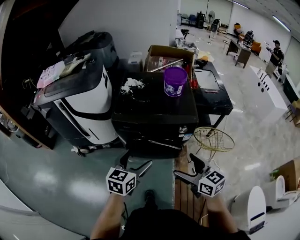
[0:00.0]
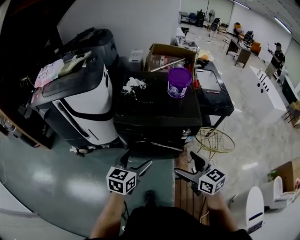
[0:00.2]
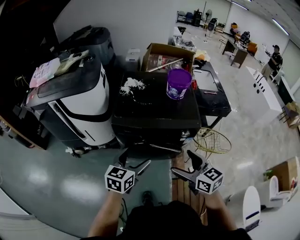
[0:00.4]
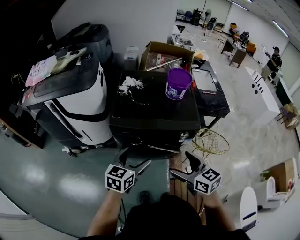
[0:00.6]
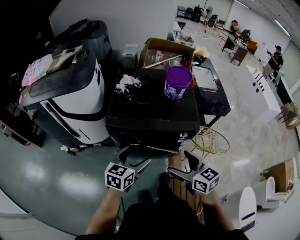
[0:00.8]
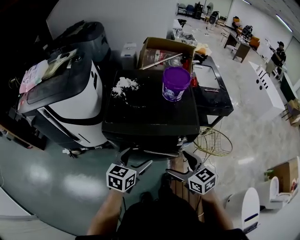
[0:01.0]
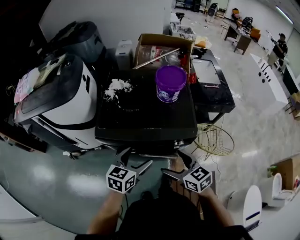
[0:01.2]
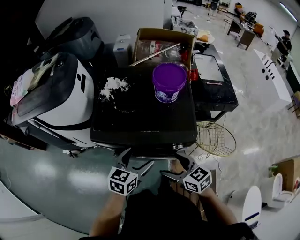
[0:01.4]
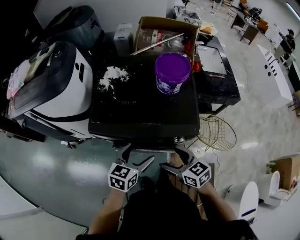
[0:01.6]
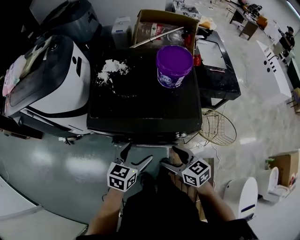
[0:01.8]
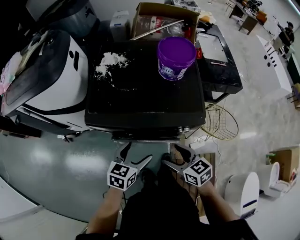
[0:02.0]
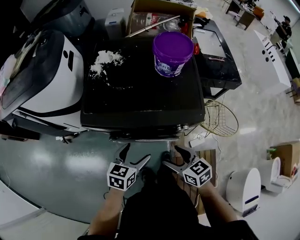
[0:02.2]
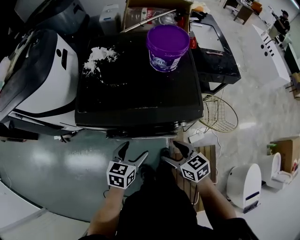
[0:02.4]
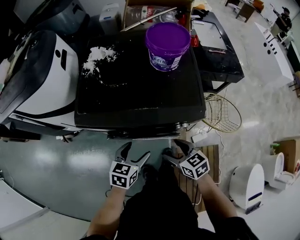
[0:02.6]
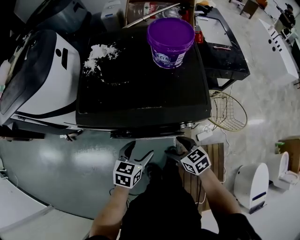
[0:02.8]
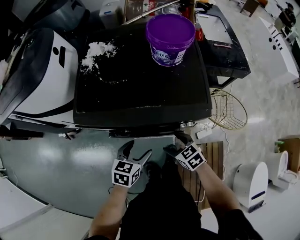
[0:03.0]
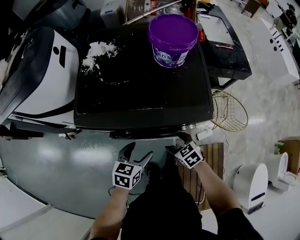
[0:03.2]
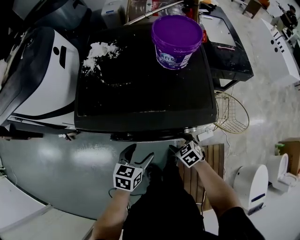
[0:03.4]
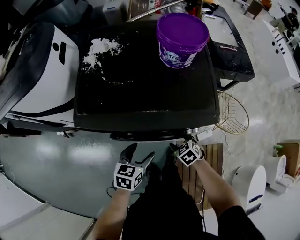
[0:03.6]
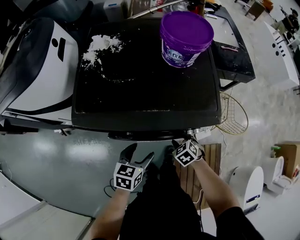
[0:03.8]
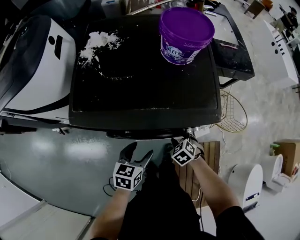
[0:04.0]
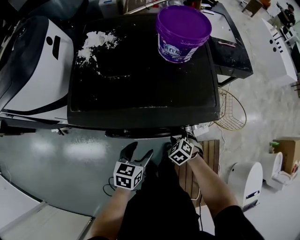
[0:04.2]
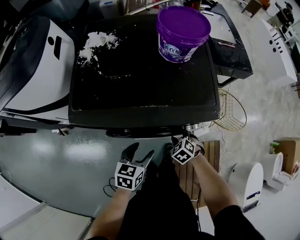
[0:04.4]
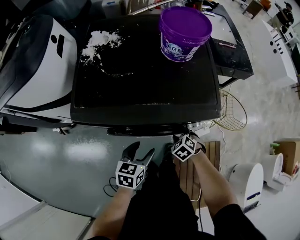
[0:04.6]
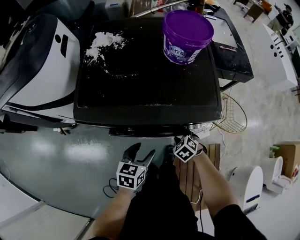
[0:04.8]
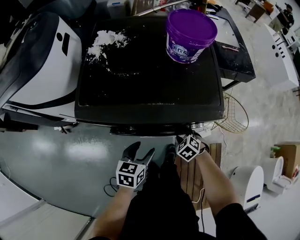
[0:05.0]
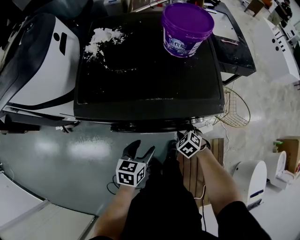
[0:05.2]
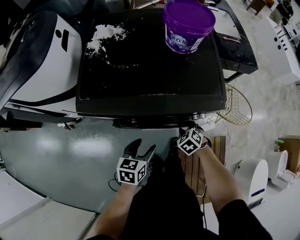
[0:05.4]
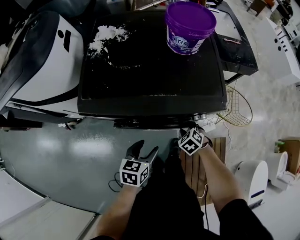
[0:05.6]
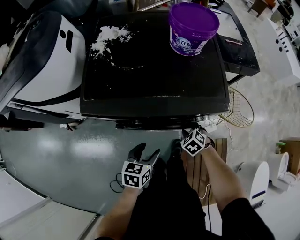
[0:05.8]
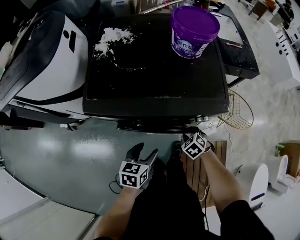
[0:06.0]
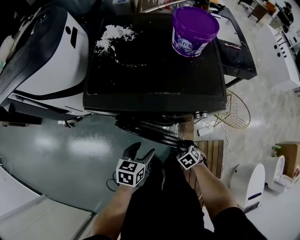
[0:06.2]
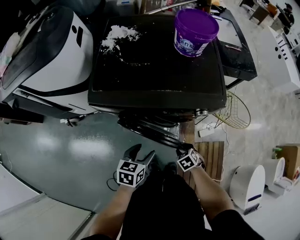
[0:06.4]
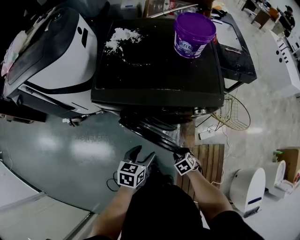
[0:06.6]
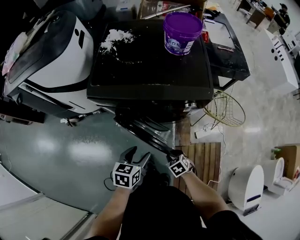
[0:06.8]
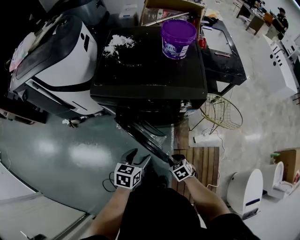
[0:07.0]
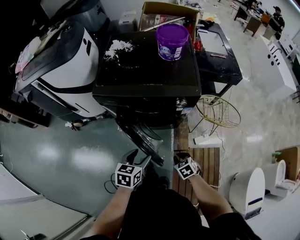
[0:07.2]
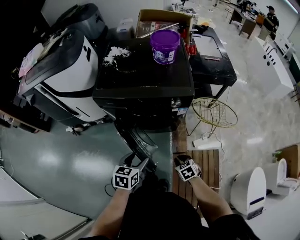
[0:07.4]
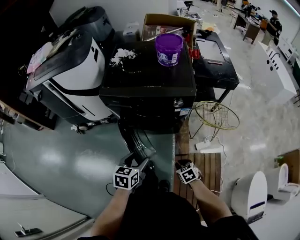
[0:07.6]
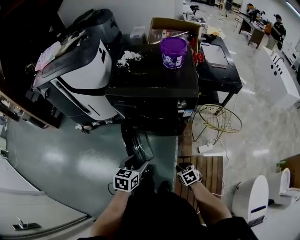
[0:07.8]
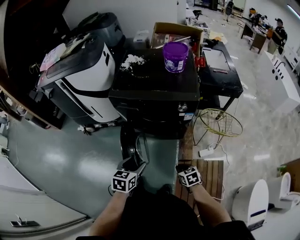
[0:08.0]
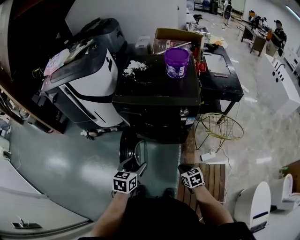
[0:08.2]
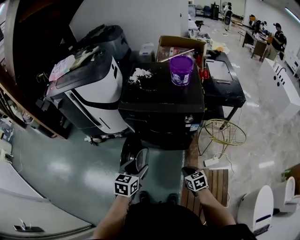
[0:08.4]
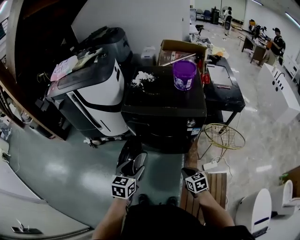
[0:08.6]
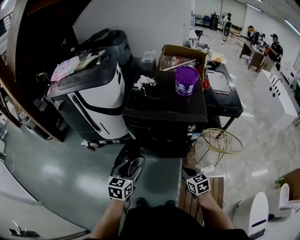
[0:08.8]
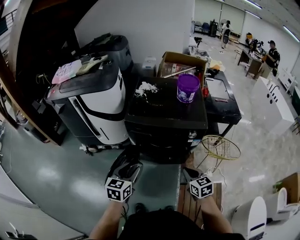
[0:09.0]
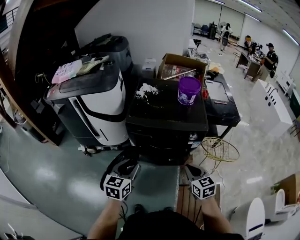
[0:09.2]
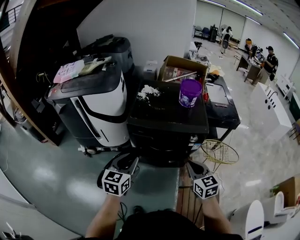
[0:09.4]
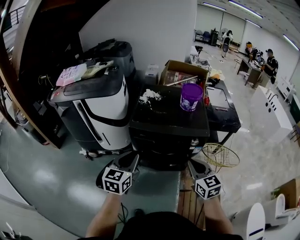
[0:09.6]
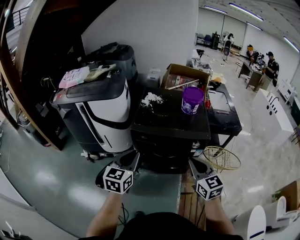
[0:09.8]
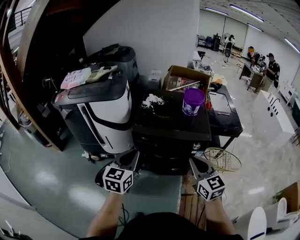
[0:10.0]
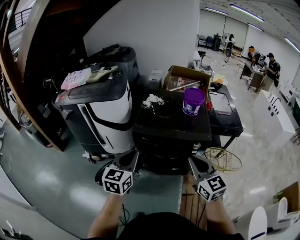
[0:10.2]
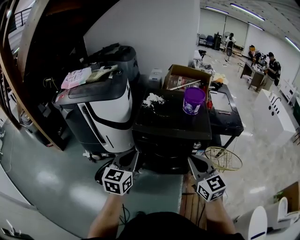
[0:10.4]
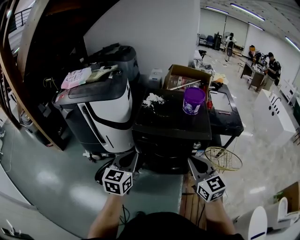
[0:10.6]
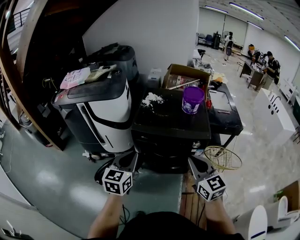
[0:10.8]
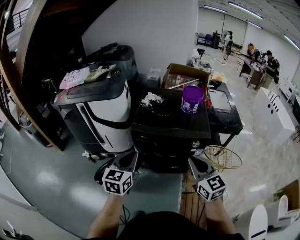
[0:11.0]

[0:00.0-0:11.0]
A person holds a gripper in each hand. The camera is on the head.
0.0 to 1.6 s: The right gripper is displaced forward and downward by some 20 cm; the left gripper heads forward, downward and to the right, covering about 20 cm.
1.6 to 3.2 s: The left gripper shifts some 15 cm downward; the right gripper travels downward by roughly 25 cm, and swivels approximately 30 degrees.
3.2 to 4.8 s: The right gripper is displaced downward by some 5 cm, rotates roughly 30 degrees, and closes up.
4.8 to 6.2 s: The right gripper shifts by roughly 10 cm, while the left gripper shifts by some 5 cm.
6.2 to 7.8 s: The right gripper ends up roughly 20 cm from where it was; the left gripper moves approximately 20 cm.
7.8 to 9.4 s: The right gripper goes roughly 30 cm upward, and tilts its fingers roughly 40 degrees upward; the left gripper moves upward, to the left and forward, some 25 cm, and turns by about 20 degrees.
9.4 to 11.0 s: The left gripper goes about 5 cm upward. Meanwhile the right gripper travels upward by roughly 10 cm.

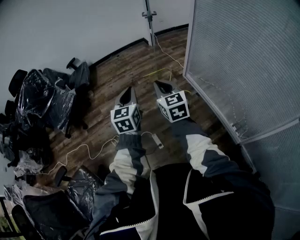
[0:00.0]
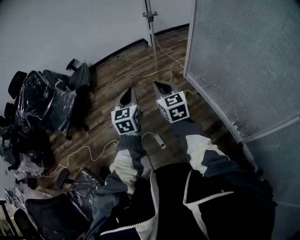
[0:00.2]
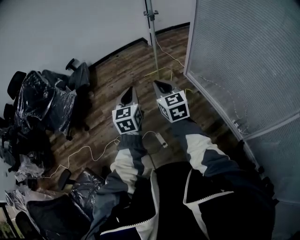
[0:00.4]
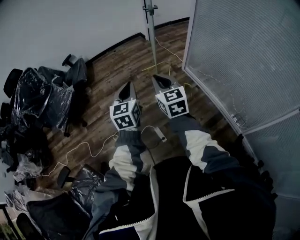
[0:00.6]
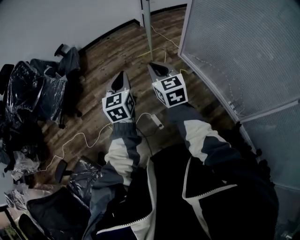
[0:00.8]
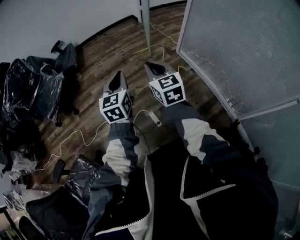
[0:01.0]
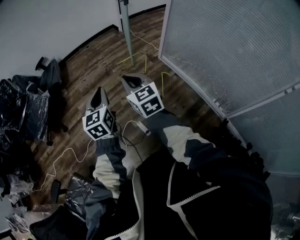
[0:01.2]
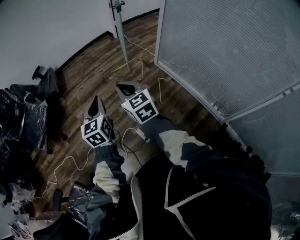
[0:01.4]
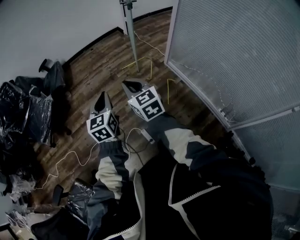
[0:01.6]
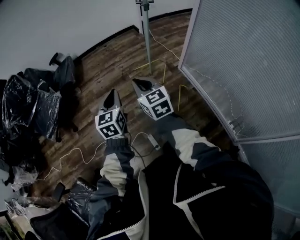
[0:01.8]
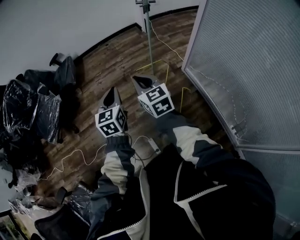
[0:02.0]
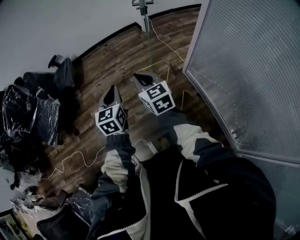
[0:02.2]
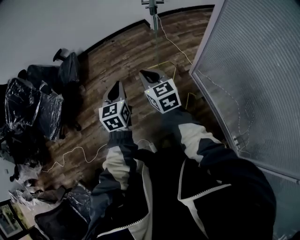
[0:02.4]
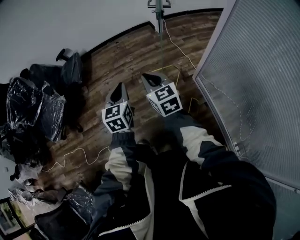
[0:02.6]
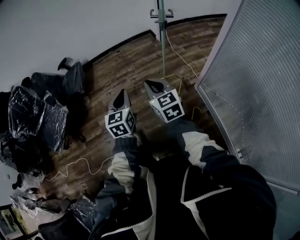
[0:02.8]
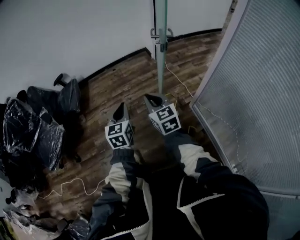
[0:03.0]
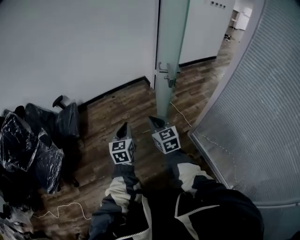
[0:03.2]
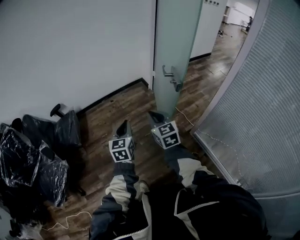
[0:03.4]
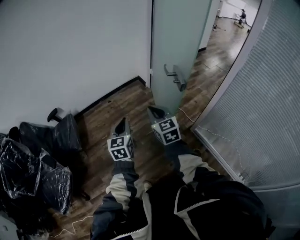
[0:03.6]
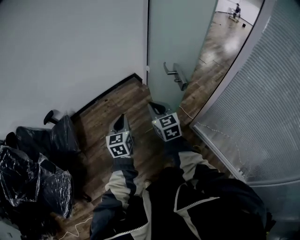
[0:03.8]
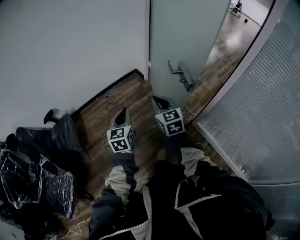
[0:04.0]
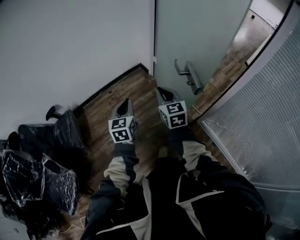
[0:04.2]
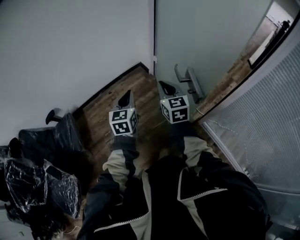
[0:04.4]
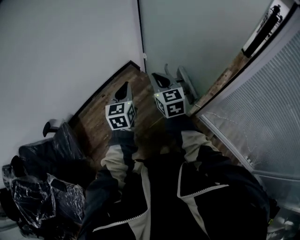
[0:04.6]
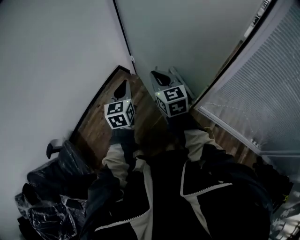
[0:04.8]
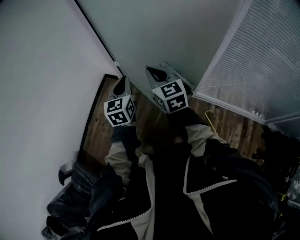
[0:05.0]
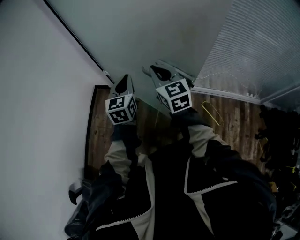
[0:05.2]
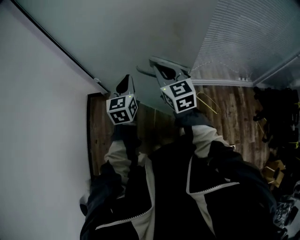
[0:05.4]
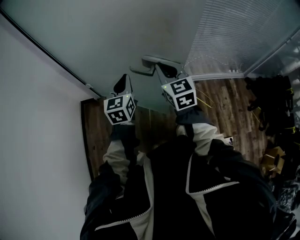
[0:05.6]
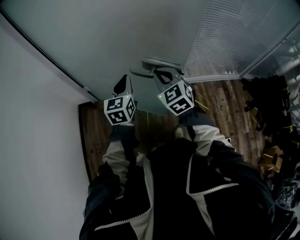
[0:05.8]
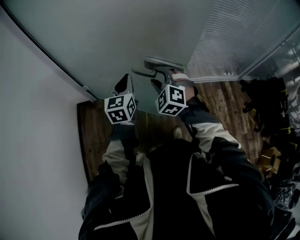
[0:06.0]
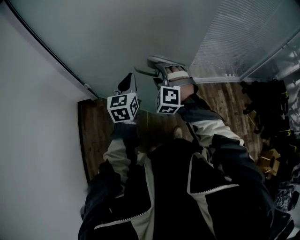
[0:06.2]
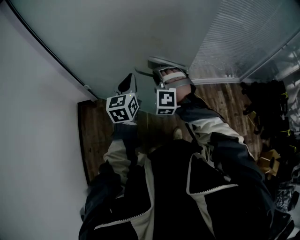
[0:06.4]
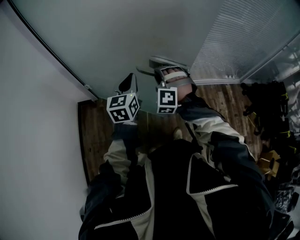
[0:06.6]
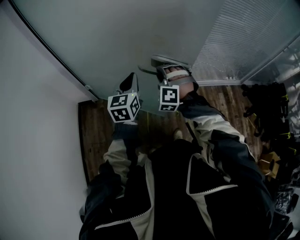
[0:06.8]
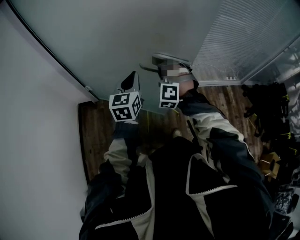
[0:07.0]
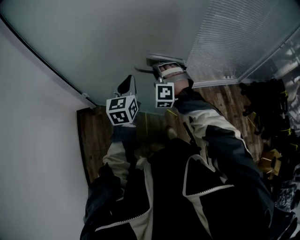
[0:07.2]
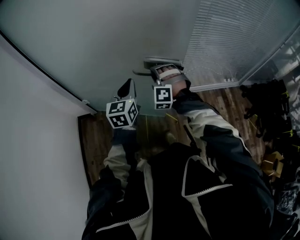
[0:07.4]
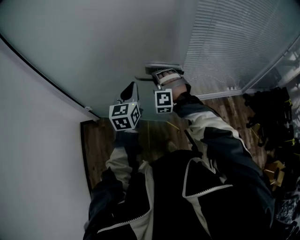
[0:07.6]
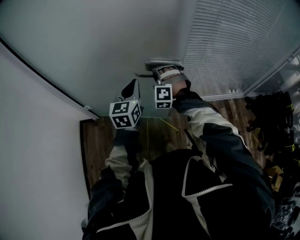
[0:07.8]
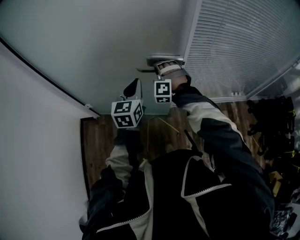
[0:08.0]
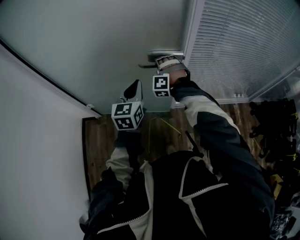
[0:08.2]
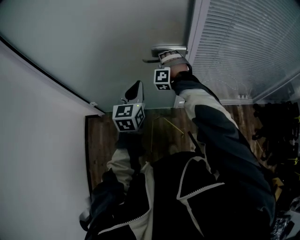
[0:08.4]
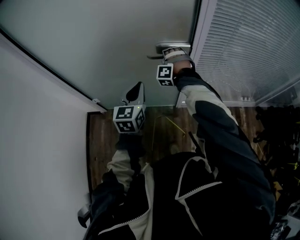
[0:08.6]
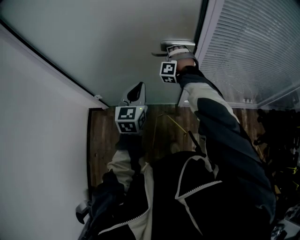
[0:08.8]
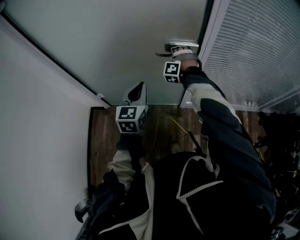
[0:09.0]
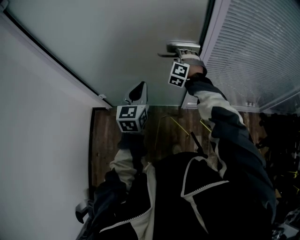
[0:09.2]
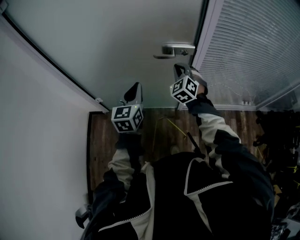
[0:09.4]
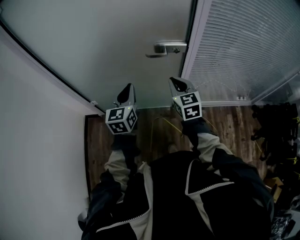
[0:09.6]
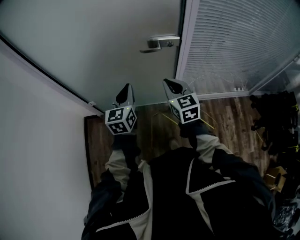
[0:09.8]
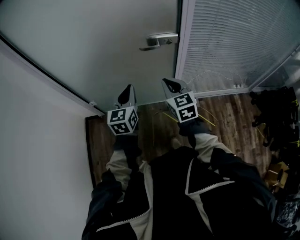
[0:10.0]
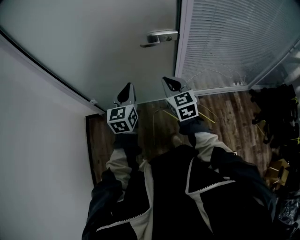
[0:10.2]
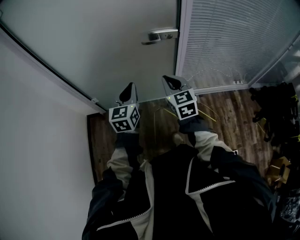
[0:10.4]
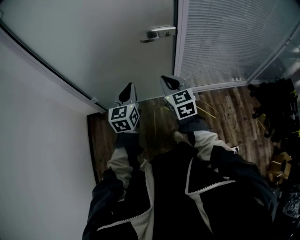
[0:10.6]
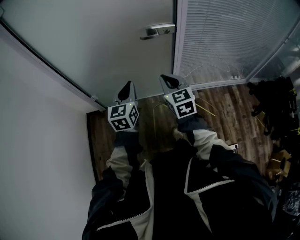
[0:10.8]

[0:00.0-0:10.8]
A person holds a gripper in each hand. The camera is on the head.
0.0 to 1.6 s: The right gripper goes approximately 15 cm to the left and forward, while the left gripper shifts some 15 cm forward, to the left and downward.
1.6 to 3.0 s: The grippers both shift forward by some 35 cm.
3.0 to 4.6 s: The pair of grippers is taken forward, some 40 cm. The left gripper changes its angle by roughly 20 degrees, while the right gripper rotates roughly 30 degrees.
4.6 to 6.2 s: The left gripper shifts by roughly 15 cm, and turns by about 50 degrees. The right gripper shifts by some 10 cm, changes its angle by approximately 80 degrees, and opens.
6.2 to 7.8 s: The left gripper moves forward and to the right, approximately 15 cm. Meanwhile the right gripper heads forward, covering about 20 cm, and closes up.
7.8 to 9.2 s: The right gripper travels forward by about 15 cm.
9.2 to 10.8 s: The left gripper travels backward by some 10 cm; the right gripper is displaced backward by approximately 30 cm, rotates around the line of its fingers by some 70 degrees, clockwise from behind, and closes up.

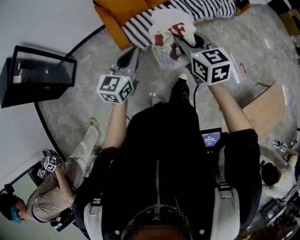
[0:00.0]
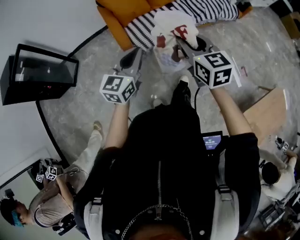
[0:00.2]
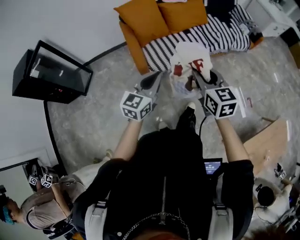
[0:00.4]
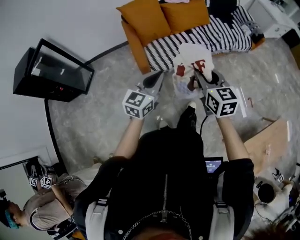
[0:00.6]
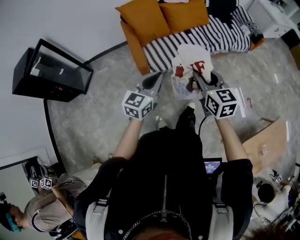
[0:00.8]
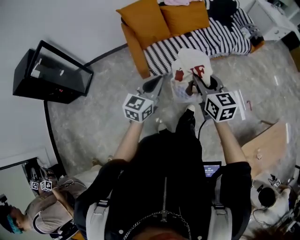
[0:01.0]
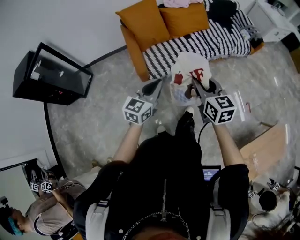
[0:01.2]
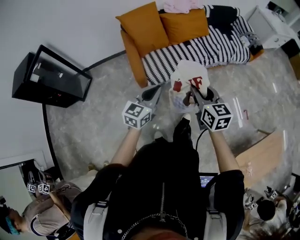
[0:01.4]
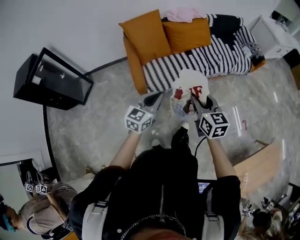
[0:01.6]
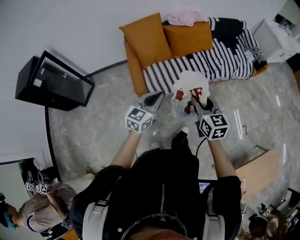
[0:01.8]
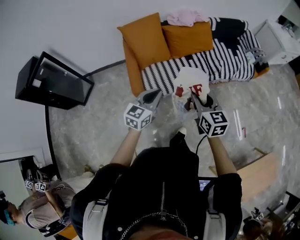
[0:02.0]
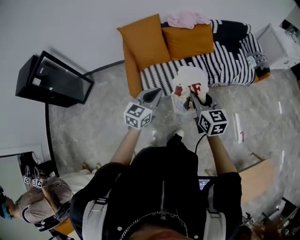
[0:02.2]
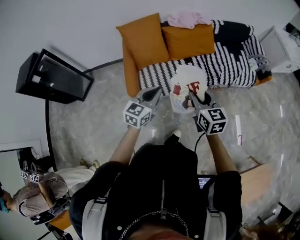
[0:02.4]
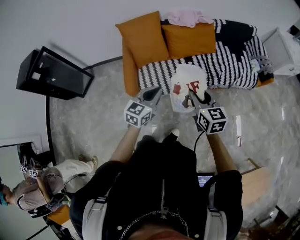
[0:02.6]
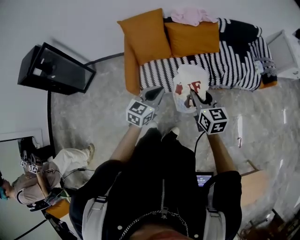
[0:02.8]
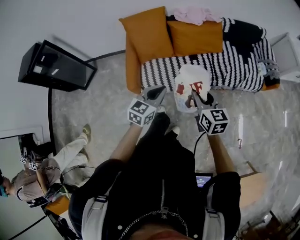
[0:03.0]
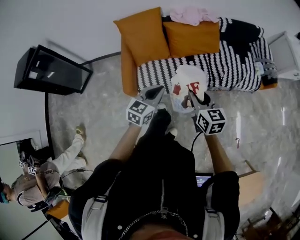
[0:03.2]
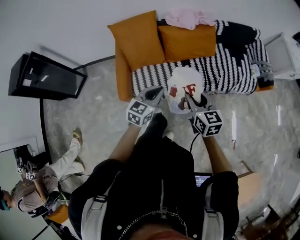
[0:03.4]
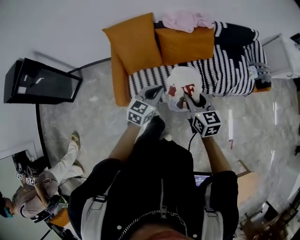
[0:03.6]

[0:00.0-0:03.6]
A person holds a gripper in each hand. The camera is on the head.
0.0 to 1.8 s: Both grippers travel together forward and to the right, about 10 cm.
1.8 to 3.6 s: The left gripper is displaced forward and to the right by roughly 30 cm; the right gripper heads forward, covering some 25 cm.
